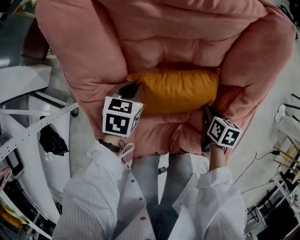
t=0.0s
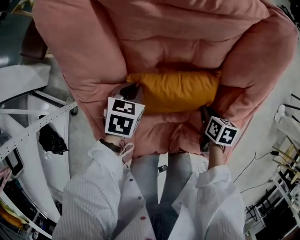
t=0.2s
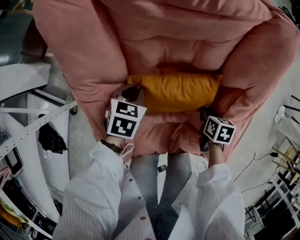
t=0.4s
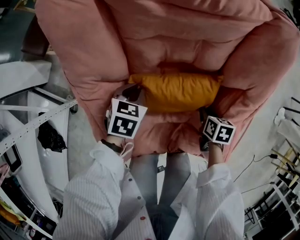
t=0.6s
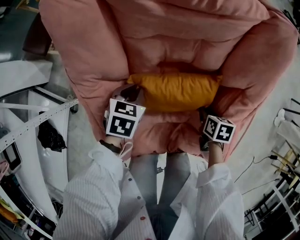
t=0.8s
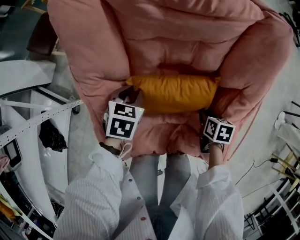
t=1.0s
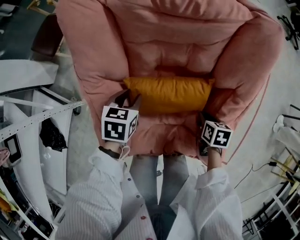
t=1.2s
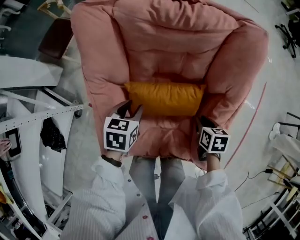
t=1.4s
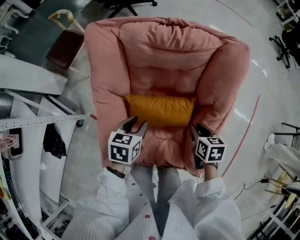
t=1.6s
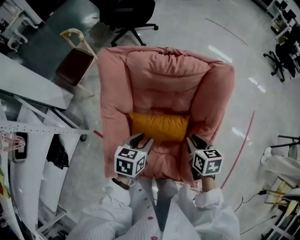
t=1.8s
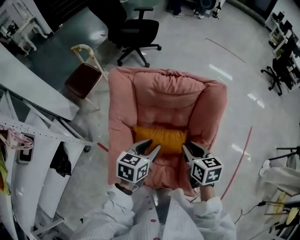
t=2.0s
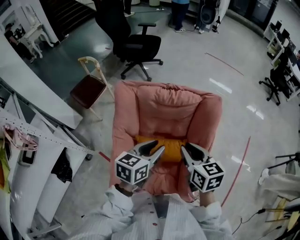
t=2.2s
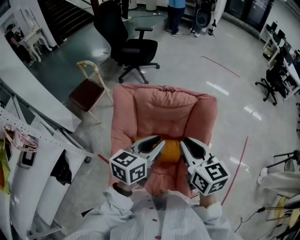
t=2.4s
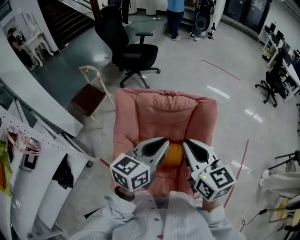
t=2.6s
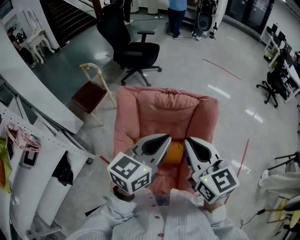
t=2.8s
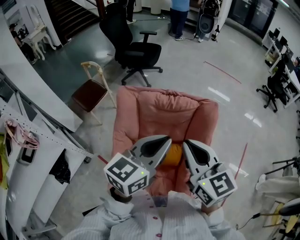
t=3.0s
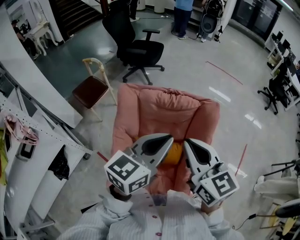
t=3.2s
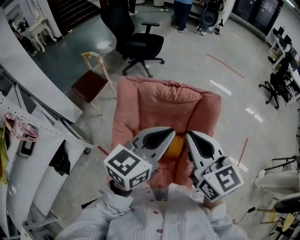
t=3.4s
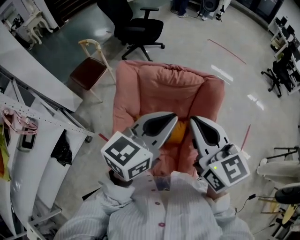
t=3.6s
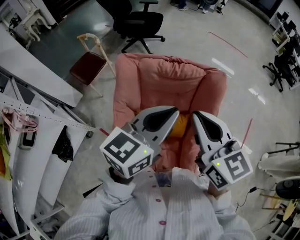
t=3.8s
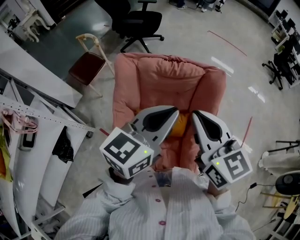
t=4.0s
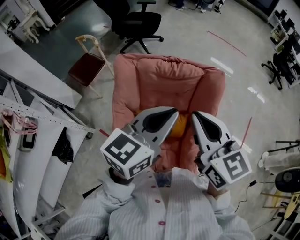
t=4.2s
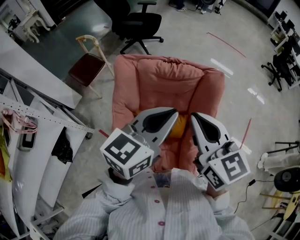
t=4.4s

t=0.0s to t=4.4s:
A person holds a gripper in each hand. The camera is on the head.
t=0.0s to t=1.4s: The right gripper shifts roughly 5 cm upward, while the left gripper is displaced upward and backward by roughly 10 cm, and opens up.
t=1.4s to t=3.0s: Both grippers travel together upward, roughly 50 cm. The right gripper tilts its fingers roughly 50 degrees upward. Meanwhile the left gripper tips its fingers upward by approximately 50 degrees, and closes its fingers.
t=3.0s to t=4.4s: The two grippers keep their place.

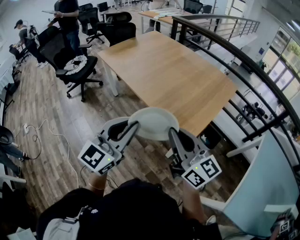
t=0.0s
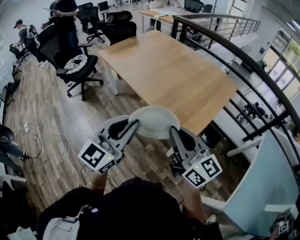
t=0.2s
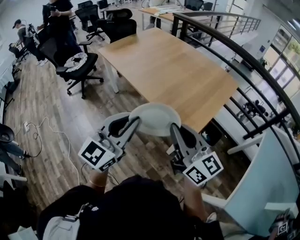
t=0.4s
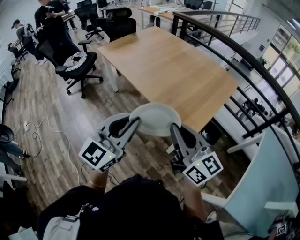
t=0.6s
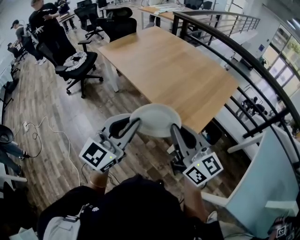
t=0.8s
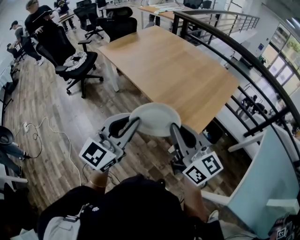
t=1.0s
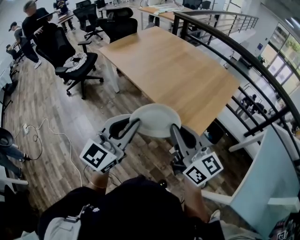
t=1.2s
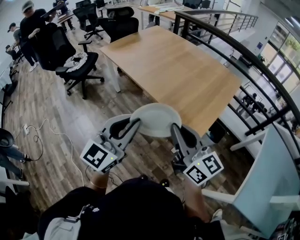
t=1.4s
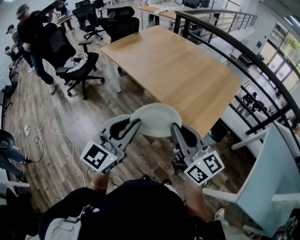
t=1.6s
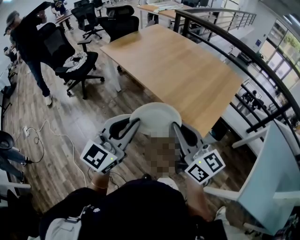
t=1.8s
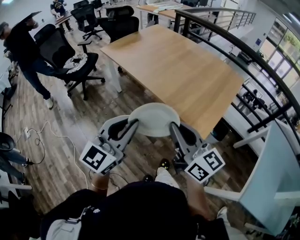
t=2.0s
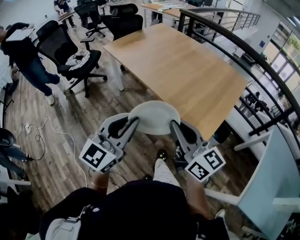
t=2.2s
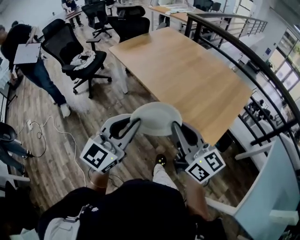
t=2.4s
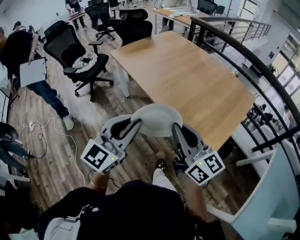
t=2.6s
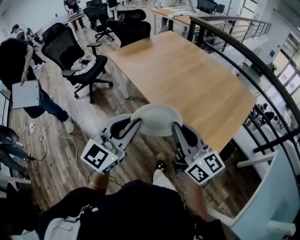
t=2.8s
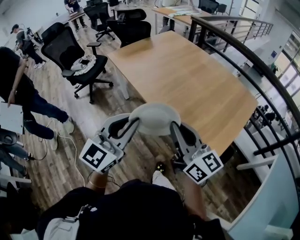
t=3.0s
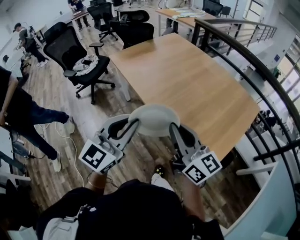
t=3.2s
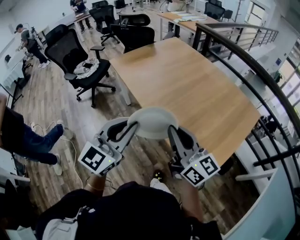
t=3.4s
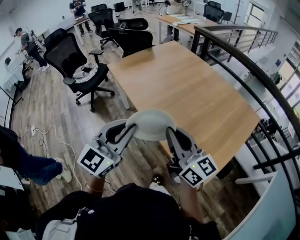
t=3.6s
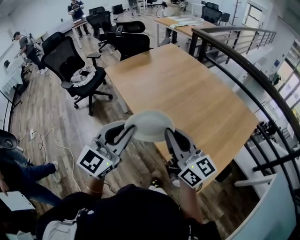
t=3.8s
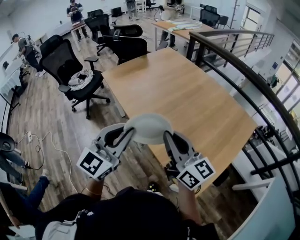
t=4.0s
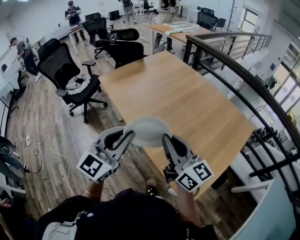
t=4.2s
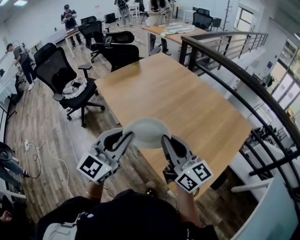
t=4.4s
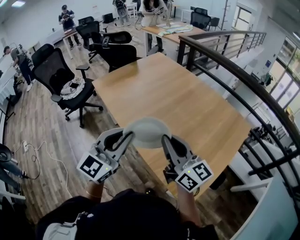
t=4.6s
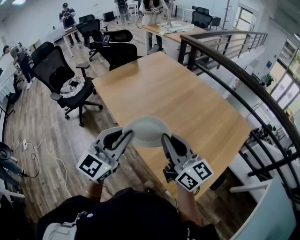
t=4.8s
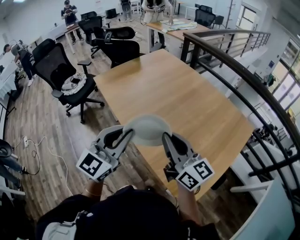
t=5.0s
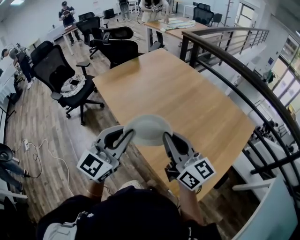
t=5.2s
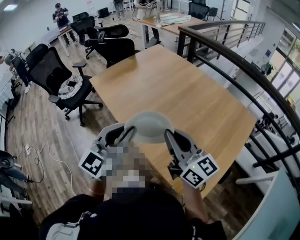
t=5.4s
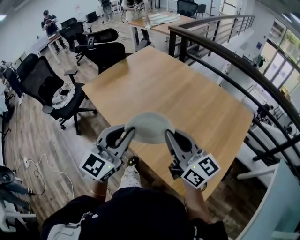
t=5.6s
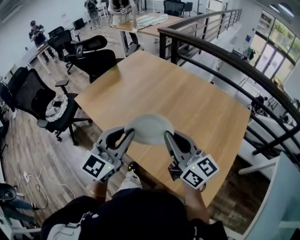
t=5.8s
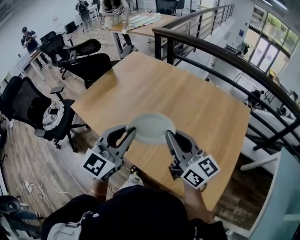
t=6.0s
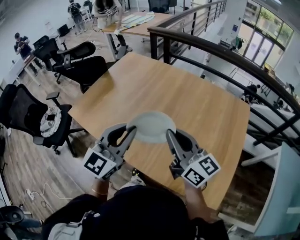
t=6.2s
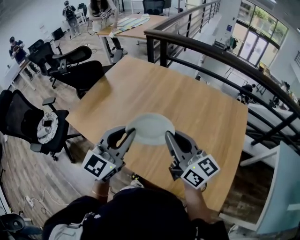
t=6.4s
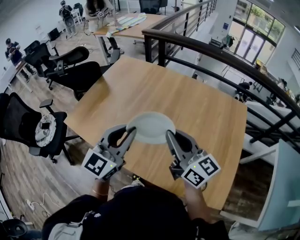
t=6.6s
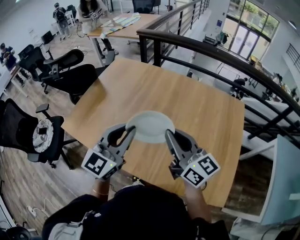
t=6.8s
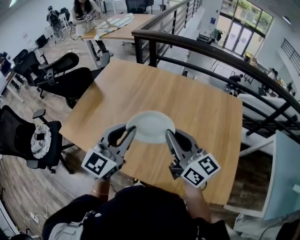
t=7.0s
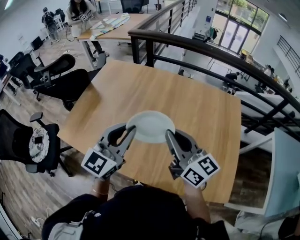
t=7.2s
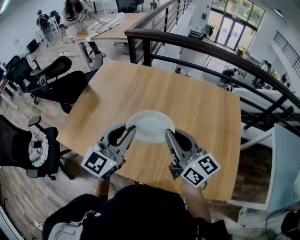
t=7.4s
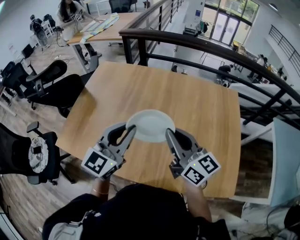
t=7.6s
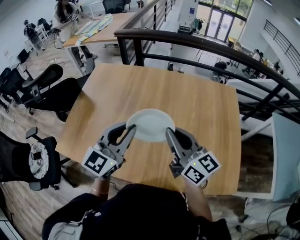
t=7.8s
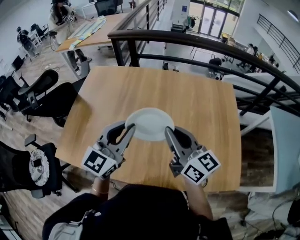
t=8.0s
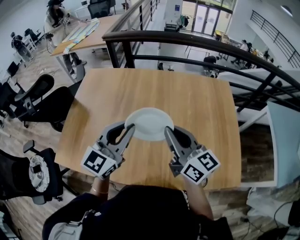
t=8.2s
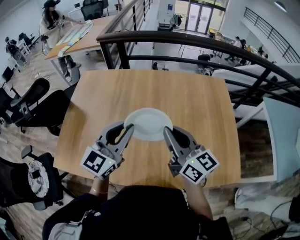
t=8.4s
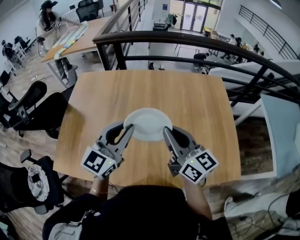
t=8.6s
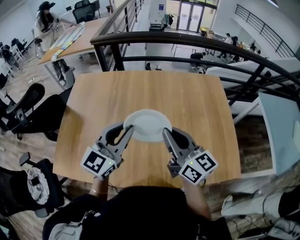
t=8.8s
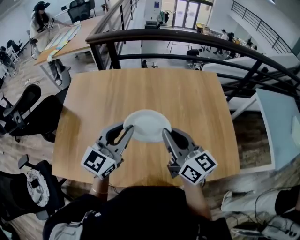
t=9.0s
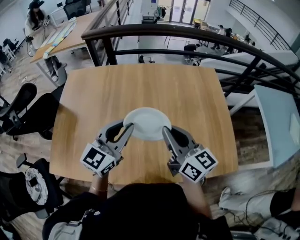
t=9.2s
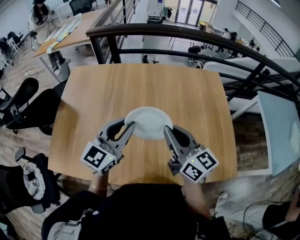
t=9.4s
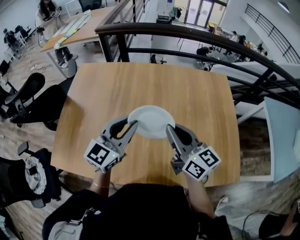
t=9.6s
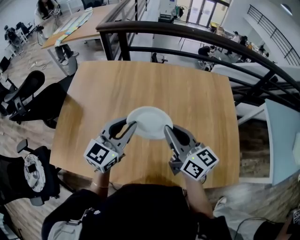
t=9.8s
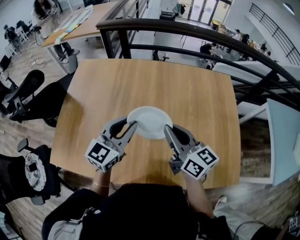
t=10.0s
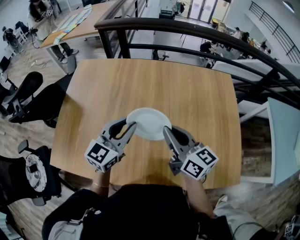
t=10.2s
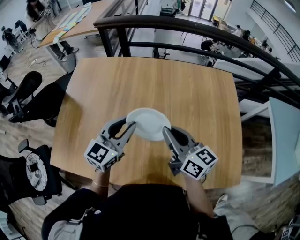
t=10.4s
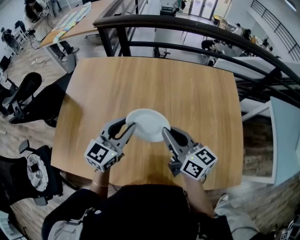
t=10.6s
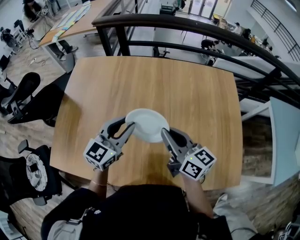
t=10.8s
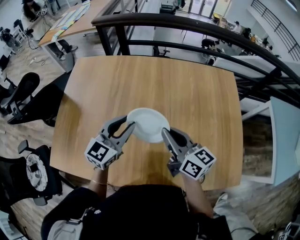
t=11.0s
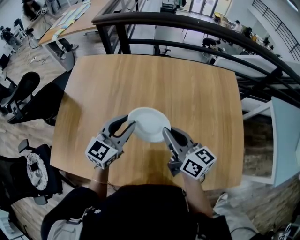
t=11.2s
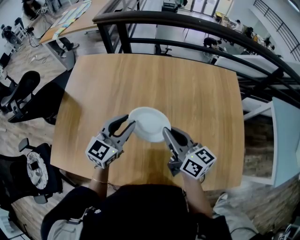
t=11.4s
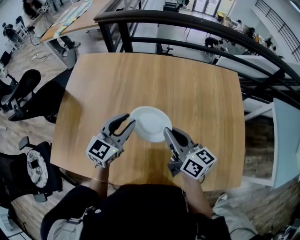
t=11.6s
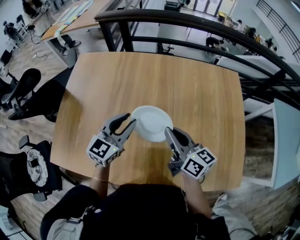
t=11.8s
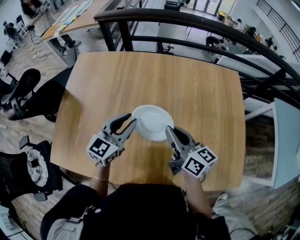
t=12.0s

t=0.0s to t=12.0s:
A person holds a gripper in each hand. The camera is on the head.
t=0.0s to t=1.6s: The two grippers go about 10 cm to the left.
t=1.6s to t=3.0s: The grippers both shift forward by roughly 15 cm.
t=3.0s to t=4.4s: The two grippers go roughly 15 cm forward and to the right.
t=4.4s to t=6.0s: Both grippers travel together forward, roughly 20 cm.
t=6.0s to t=7.6s: Both grippers move forward and to the left, some 15 cm.
t=7.6s to t=9.0s: The left gripper shifts by about 5 cm.
t=9.0s to t=10.4s: The left gripper heads downward and forward, covering some 10 cm; the right gripper travels forward by some 5 cm.
t=10.4s to t=12.0s: There are only small adjustments of the grippers.

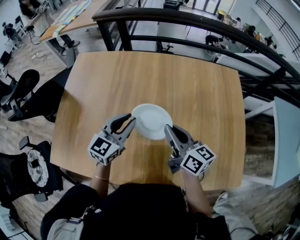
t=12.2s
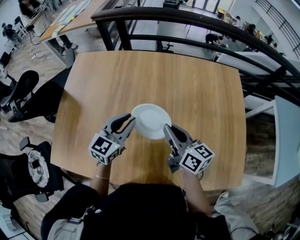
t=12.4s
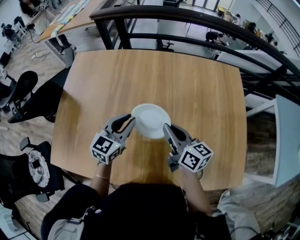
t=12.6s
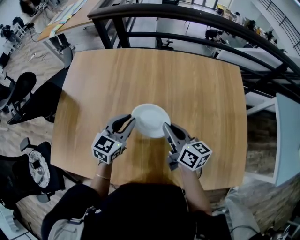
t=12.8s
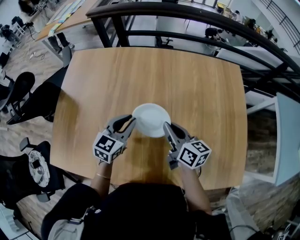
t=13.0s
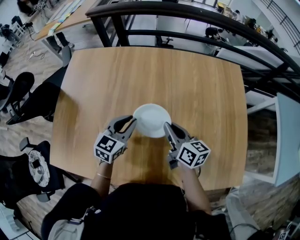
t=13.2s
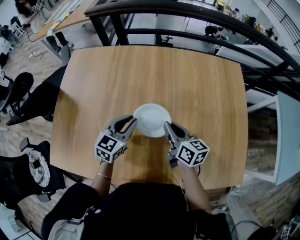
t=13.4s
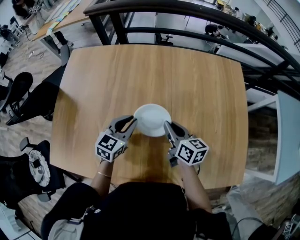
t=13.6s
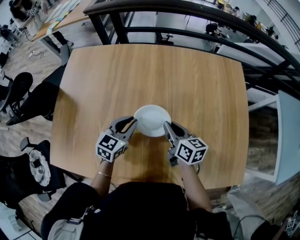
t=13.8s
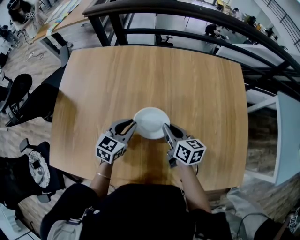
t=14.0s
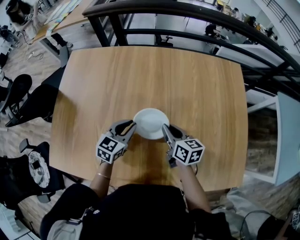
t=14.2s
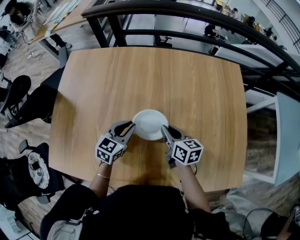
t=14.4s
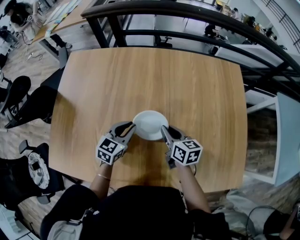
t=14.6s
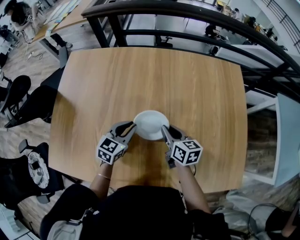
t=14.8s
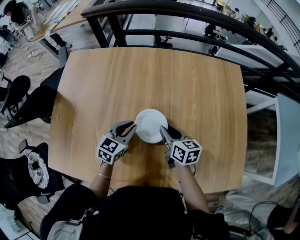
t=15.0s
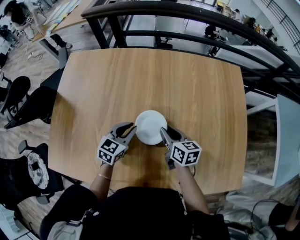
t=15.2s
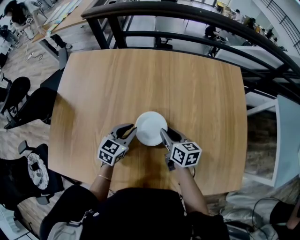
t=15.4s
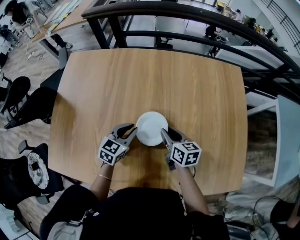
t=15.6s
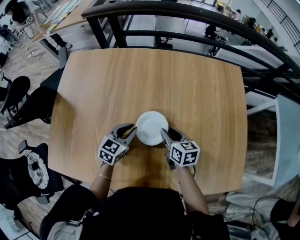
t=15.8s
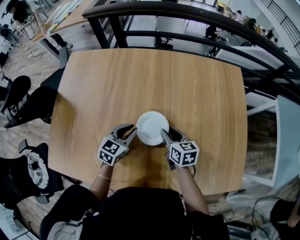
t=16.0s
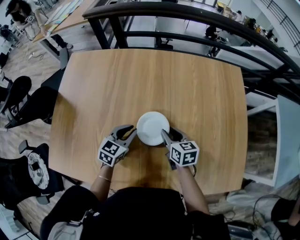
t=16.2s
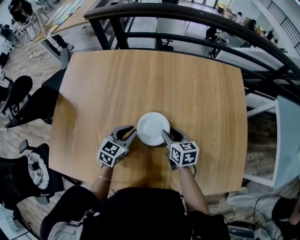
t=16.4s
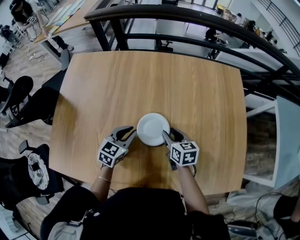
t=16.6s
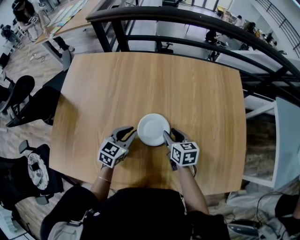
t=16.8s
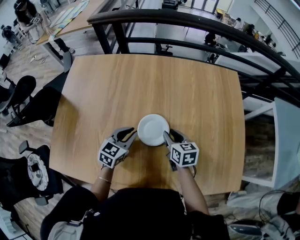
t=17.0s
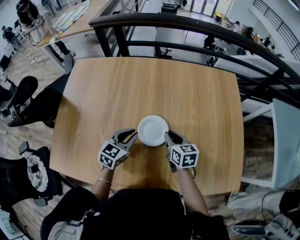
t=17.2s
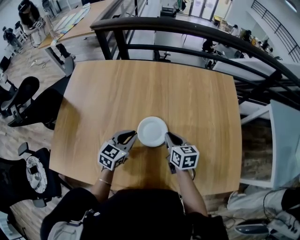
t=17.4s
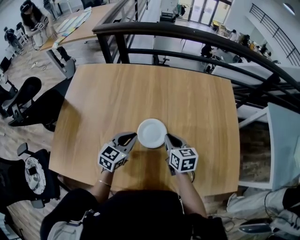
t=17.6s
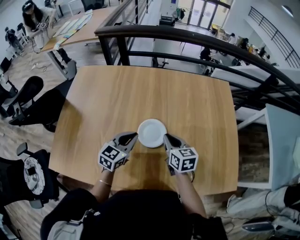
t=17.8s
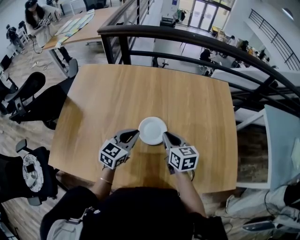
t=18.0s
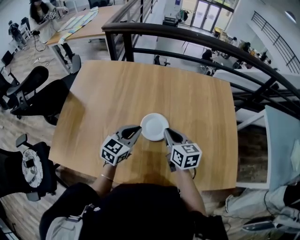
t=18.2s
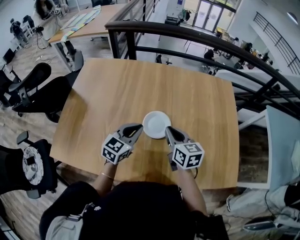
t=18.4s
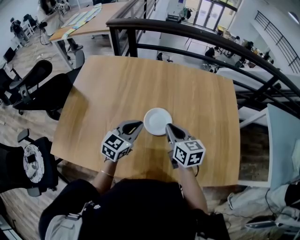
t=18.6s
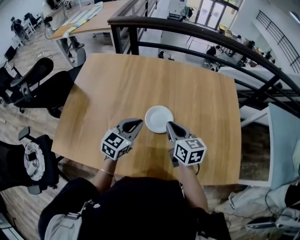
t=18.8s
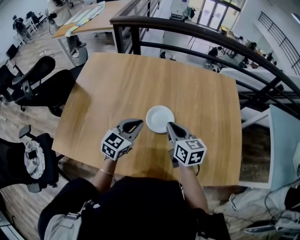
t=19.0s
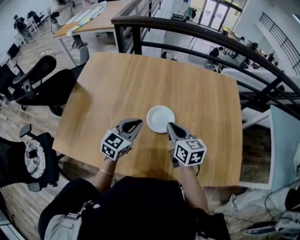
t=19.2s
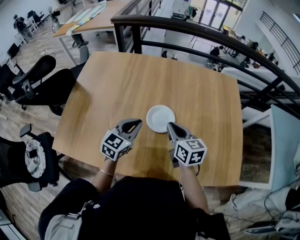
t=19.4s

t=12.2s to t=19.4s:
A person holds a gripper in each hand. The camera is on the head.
t=12.2s to t=13.6s: The two grippers go roughly 10 cm downward.
t=13.6s to t=15.0s: There are only small adjustments of the grippers.
t=15.0s to t=16.6s: The grippers move only a little.
t=16.6s to t=18.0s: The two grippers go some 10 cm upward and backward. The right gripper closes up.
t=18.0s to t=19.4s: The grippers move only a little.
